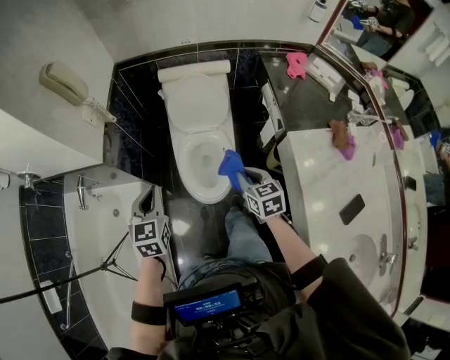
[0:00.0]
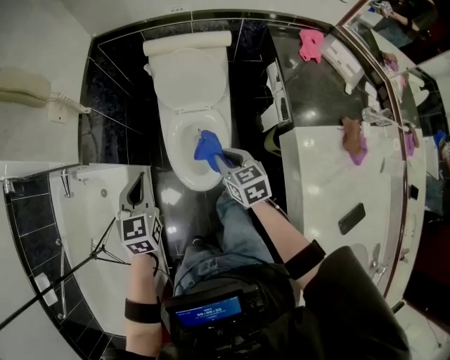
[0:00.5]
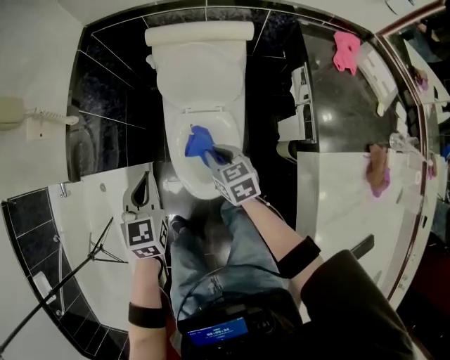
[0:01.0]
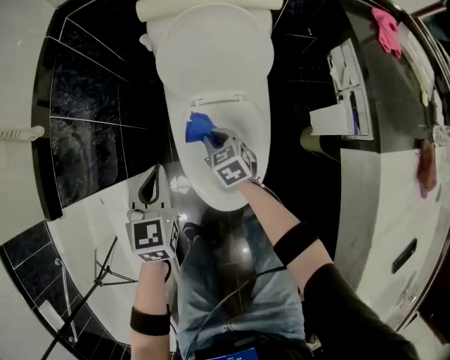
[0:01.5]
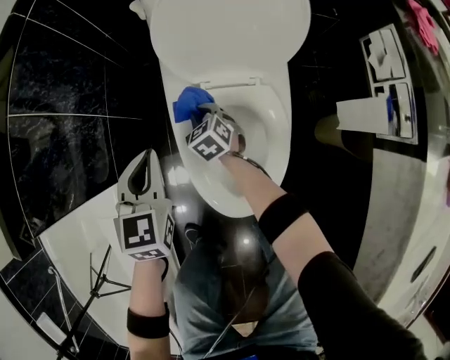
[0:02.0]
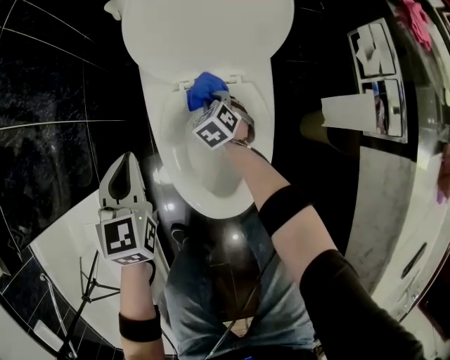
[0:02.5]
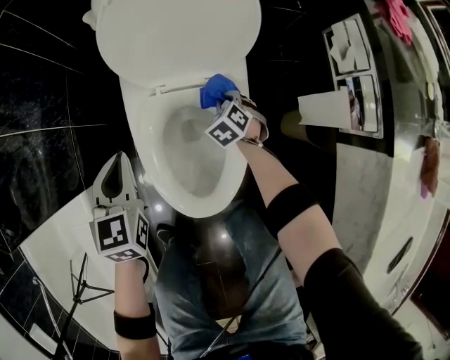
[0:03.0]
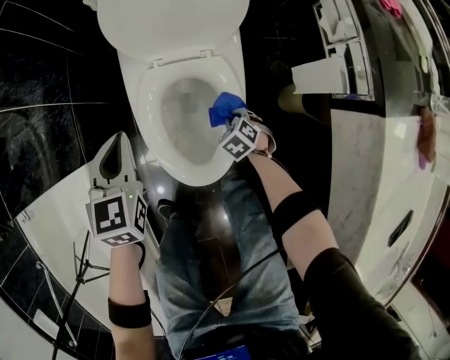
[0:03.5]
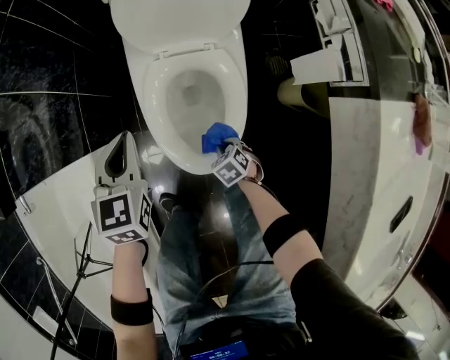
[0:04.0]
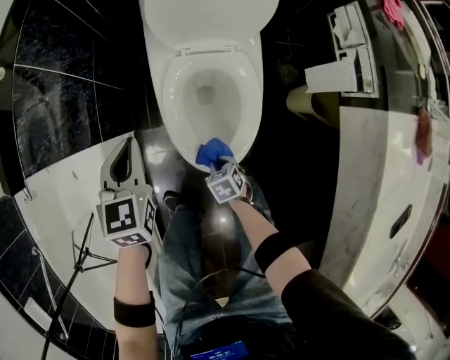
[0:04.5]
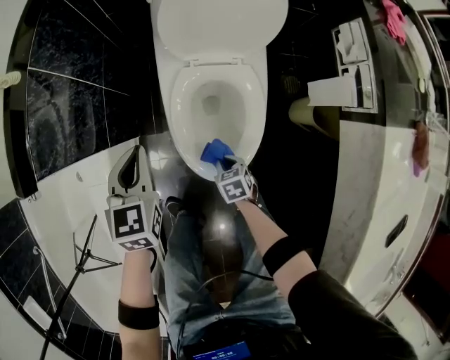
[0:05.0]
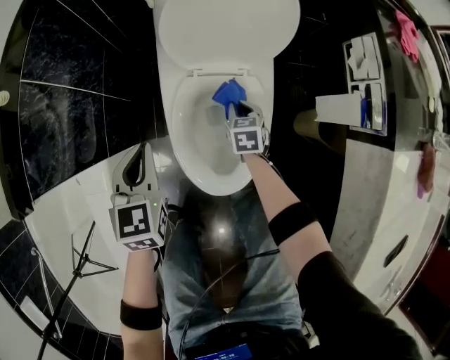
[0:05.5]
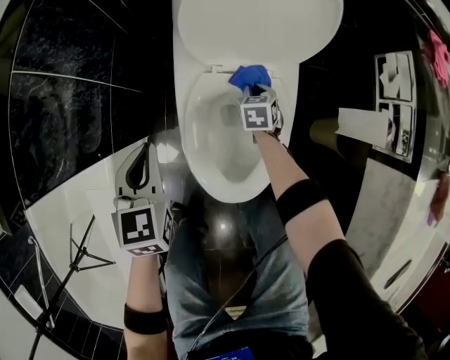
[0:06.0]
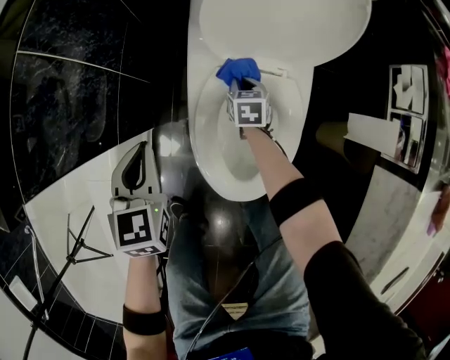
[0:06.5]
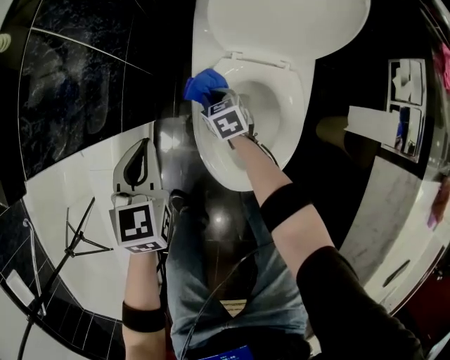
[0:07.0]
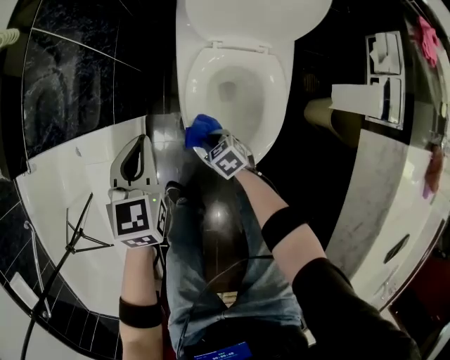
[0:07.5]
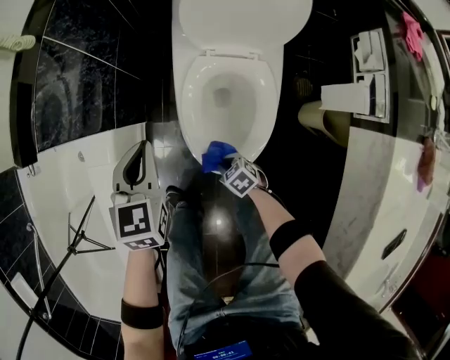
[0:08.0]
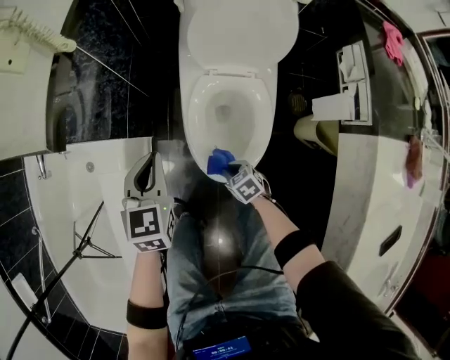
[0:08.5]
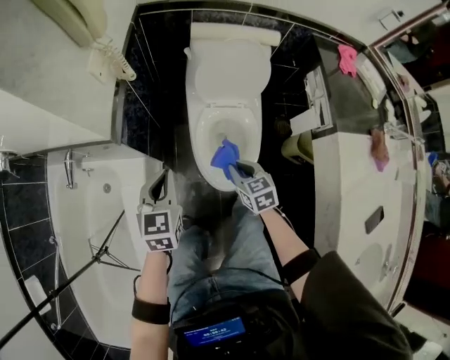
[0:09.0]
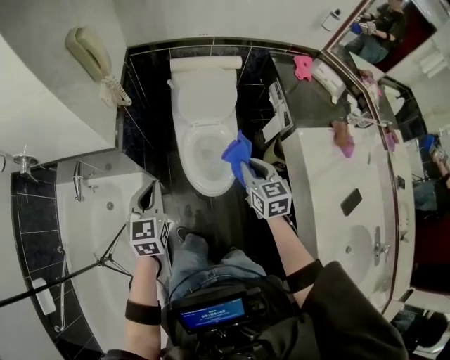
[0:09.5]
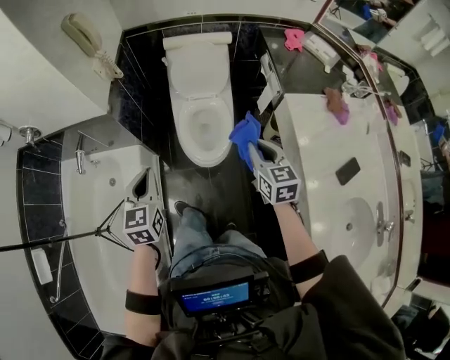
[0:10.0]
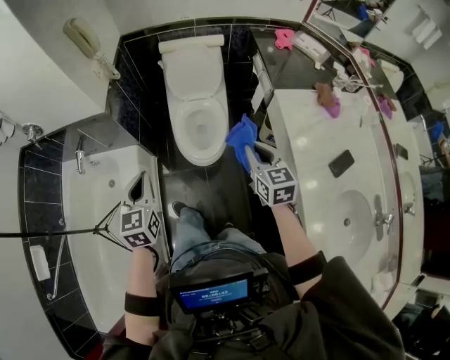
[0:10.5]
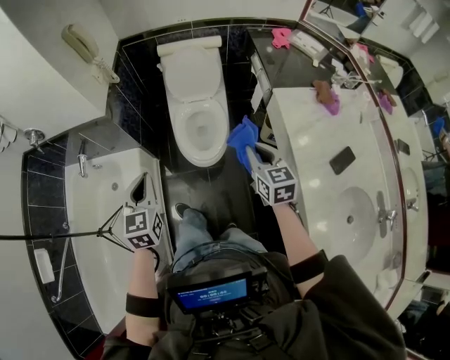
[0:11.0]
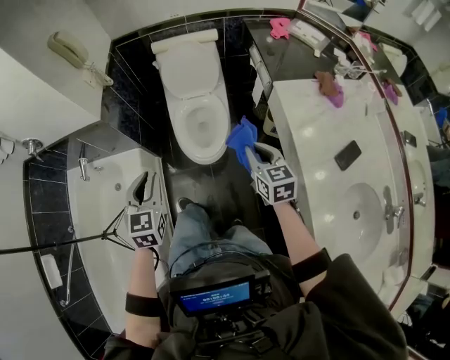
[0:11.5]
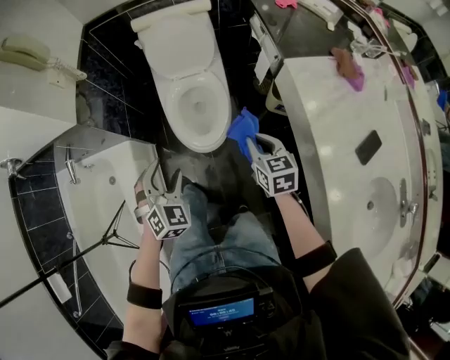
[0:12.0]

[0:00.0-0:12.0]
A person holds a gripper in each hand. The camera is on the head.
0:00.0 to 0:02.0: The two grippers go roughly 50 cm downward and forward. The right gripper changes its angle by approximately 30 degrees.
0:02.0 to 0:04.0: The left gripper shifts by some 10 cm; the right gripper changes place by approximately 35 cm, and turns by approximately 30 degrees.
0:04.0 to 0:06.0: The right gripper goes upward and returns, about 10 cm each way, and changes its angle by roughly 30 degrees. The left gripper moves roughly 10 cm.
0:06.0 to 0:08.0: The right gripper ends up about 35 cm from where it was, and turns by some 40 degrees. Meanwhile the left gripper shifts by approximately 10 cm.
0:08.0 to 0:10.0: The left gripper shifts about 35 cm upward. The right gripper goes about 60 cm upward, and tilts its fingers about 40 degrees upward.
0:10.0 to 0:12.0: The left gripper moves downward and to the right, some 20 cm, rotates around the line of its fingers by roughly 50 degrees, clockwise from behind, and opens its fingers, while the right gripper travels downward by about 15 cm.

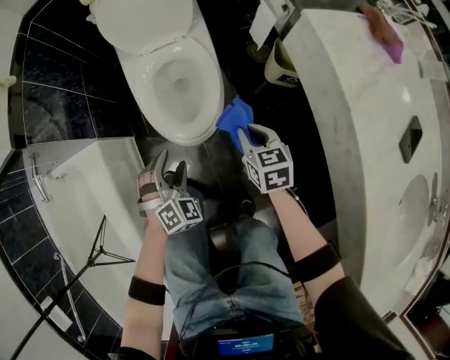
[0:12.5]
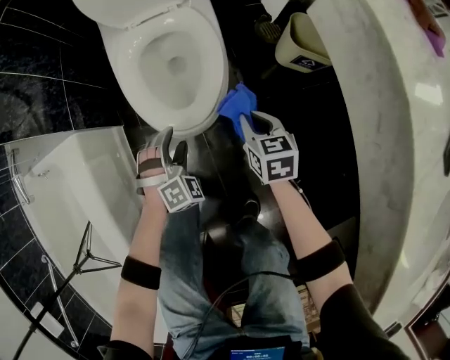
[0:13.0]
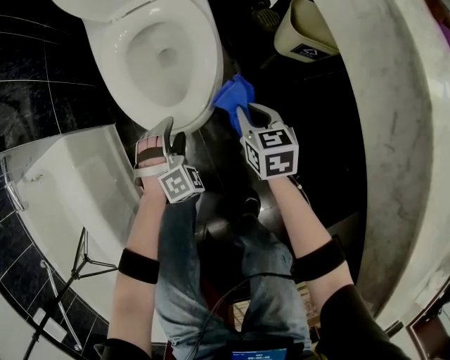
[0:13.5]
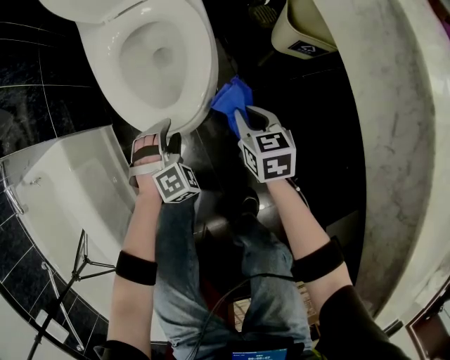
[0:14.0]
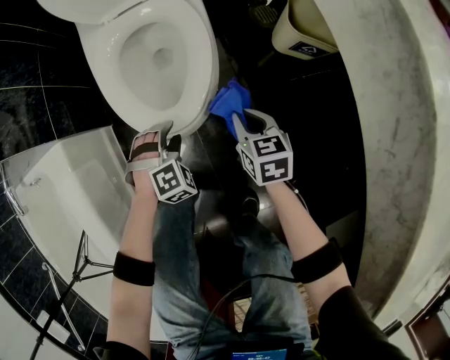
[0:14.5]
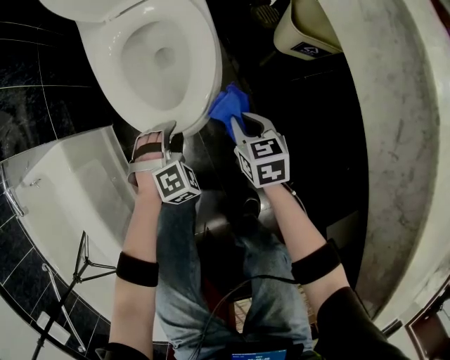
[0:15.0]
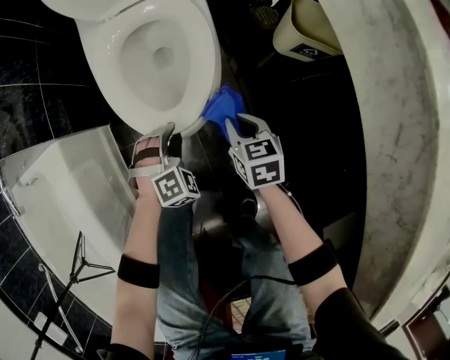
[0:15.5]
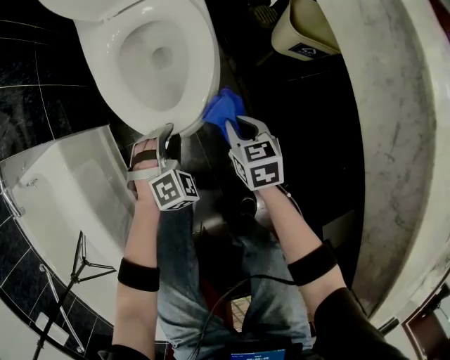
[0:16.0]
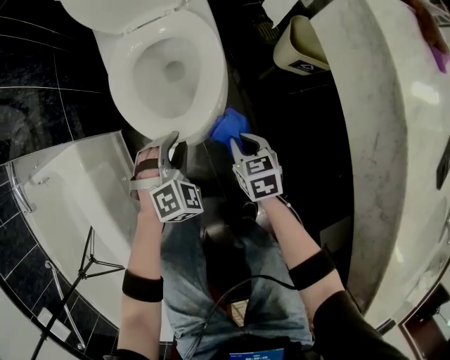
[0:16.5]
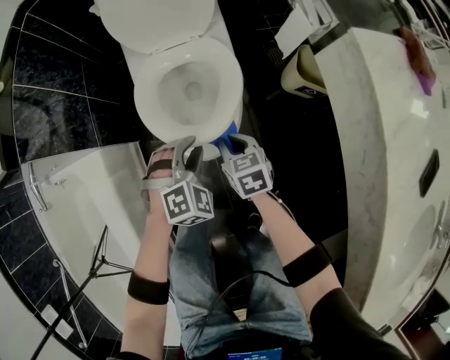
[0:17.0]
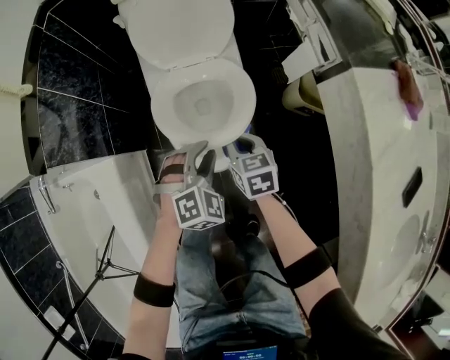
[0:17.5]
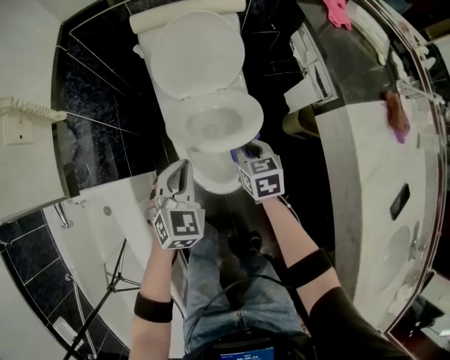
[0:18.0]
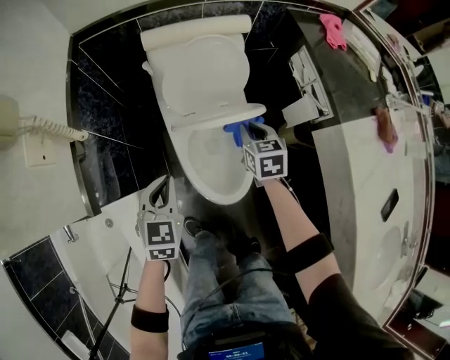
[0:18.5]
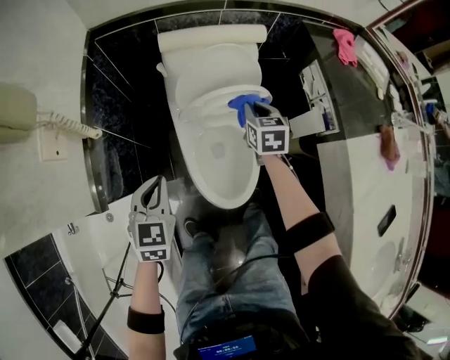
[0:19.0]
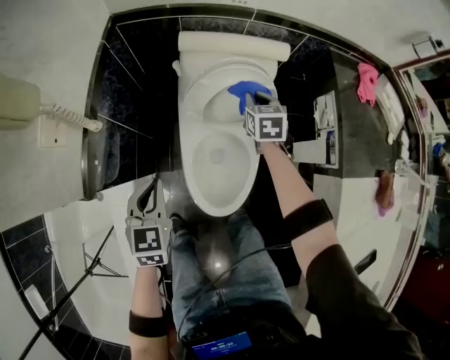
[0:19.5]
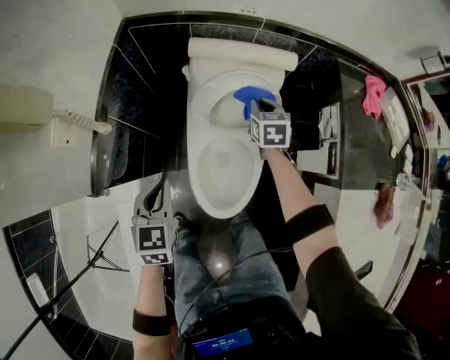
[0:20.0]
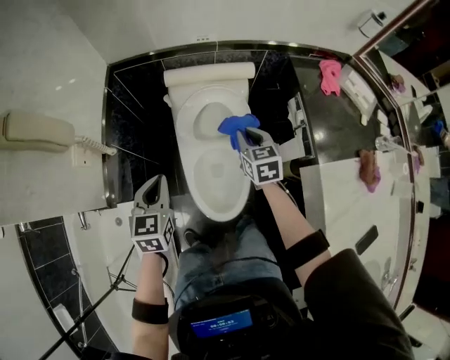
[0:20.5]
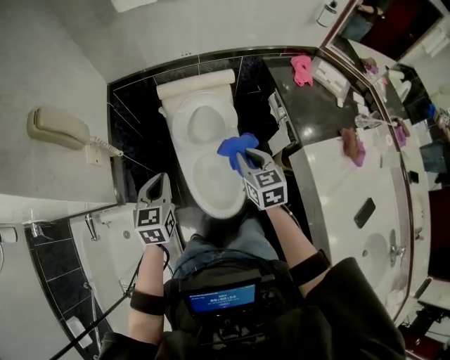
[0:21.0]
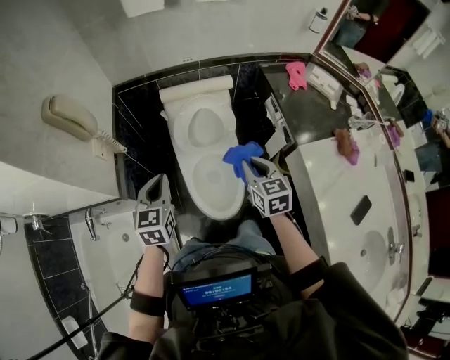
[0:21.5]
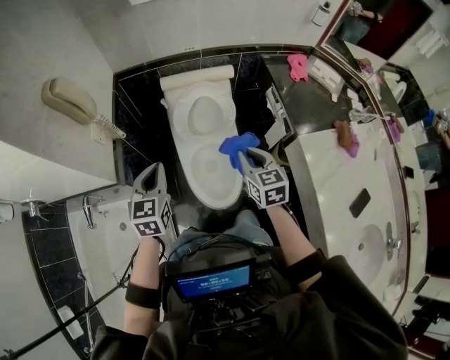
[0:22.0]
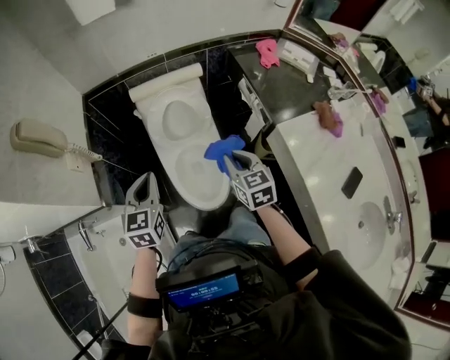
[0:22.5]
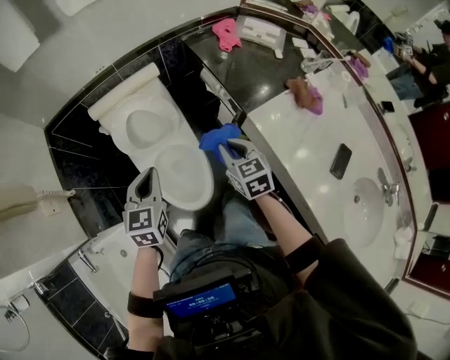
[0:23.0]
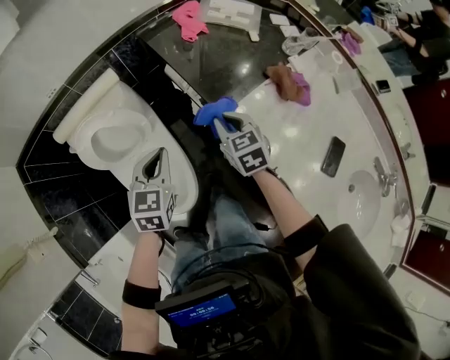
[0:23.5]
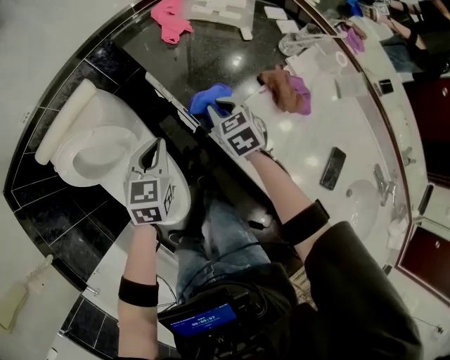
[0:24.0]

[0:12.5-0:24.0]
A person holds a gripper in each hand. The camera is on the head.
0:12.5 to 0:14.5: The grippers both shift downward by some 20 cm. The left gripper changes its angle by about 30 degrees.
0:14.5 to 0:16.5: The right gripper shifts by some 5 cm; the left gripper goes some 10 cm upward.
0:16.5 to 0:18.5: The right gripper goes roughly 40 cm forward and upward, while the left gripper heads upward, to the left and forward, covering some 40 cm, rotates around the line of its fingers by about 50 degrees, counterclockwise from behind, and closes up.
0:18.5 to 0:20.0: The right gripper is displaced forward by about 20 cm. Meanwhile the left gripper heads upward, covering roughly 5 cm, and swivels roughly 20 degrees.
0:20.0 to 0:22.0: The left gripper moves upward and backward, roughly 20 cm. Meanwhile the right gripper heads backward and upward, covering about 40 cm.
0:22.0 to 0:24.0: The pair of grippers is taken approximately 50 cm. The right gripper changes its angle by about 20 degrees; the left gripper changes its angle by approximately 40 degrees.

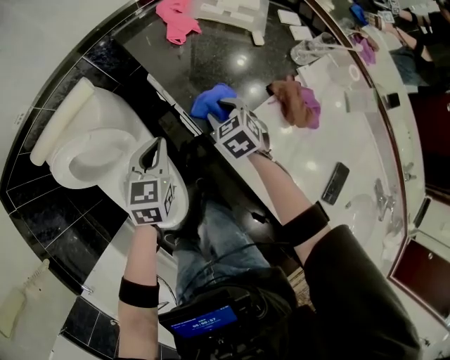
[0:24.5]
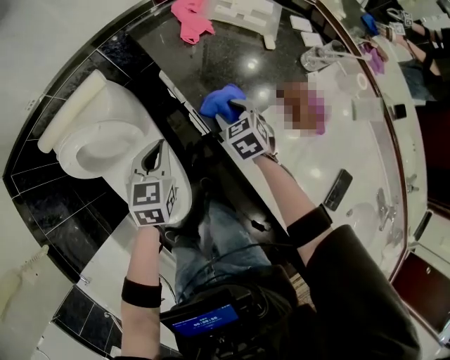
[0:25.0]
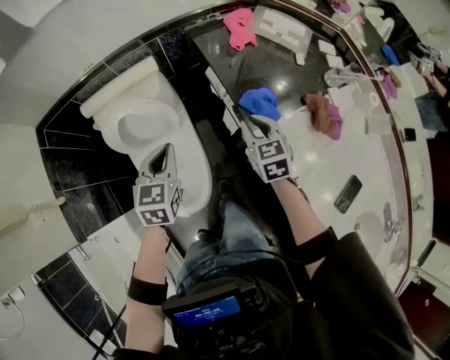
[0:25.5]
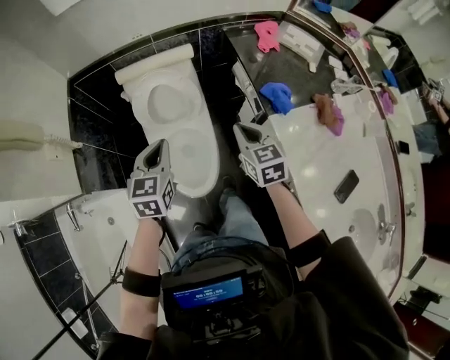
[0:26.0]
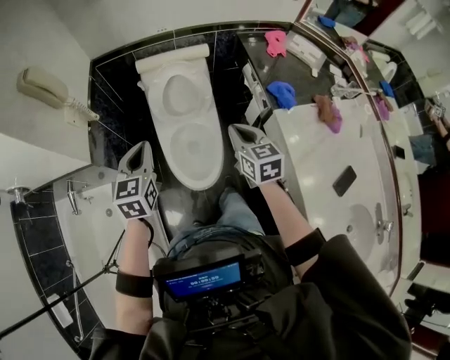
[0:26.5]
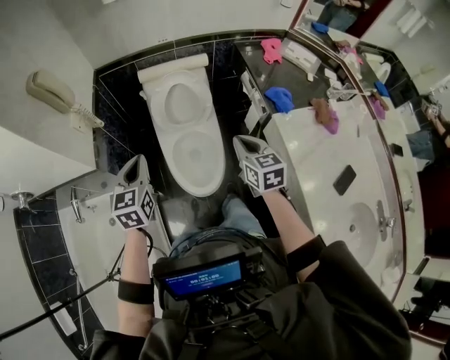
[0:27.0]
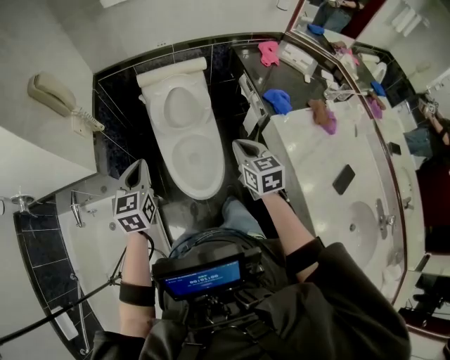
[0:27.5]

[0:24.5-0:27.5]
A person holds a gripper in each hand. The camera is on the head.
0:24.5 to 0:26.0: The left gripper goes approximately 35 cm to the left, backward and upward, and swivels approximately 30 degrees. Meanwhile the right gripper moves backward, to the left and upward, about 35 cm, swivels roughly 30 degrees, and closes its fingers.
0:26.0 to 0:27.5: The right gripper travels backward and to the left by approximately 15 cm. Meanwhile the left gripper goes approximately 20 cm to the left and backward.
